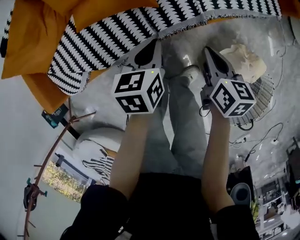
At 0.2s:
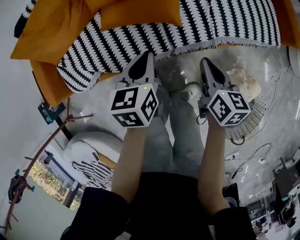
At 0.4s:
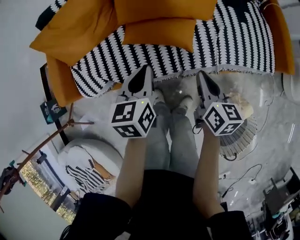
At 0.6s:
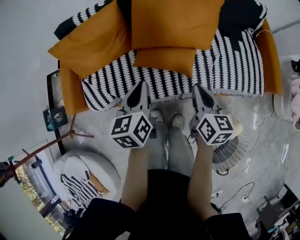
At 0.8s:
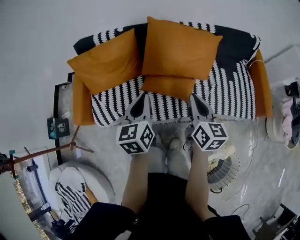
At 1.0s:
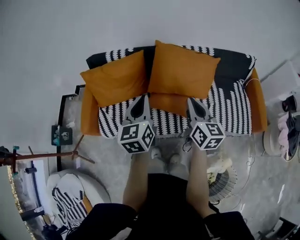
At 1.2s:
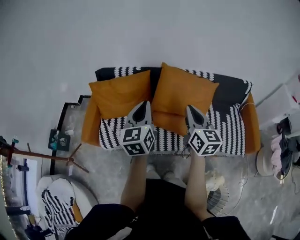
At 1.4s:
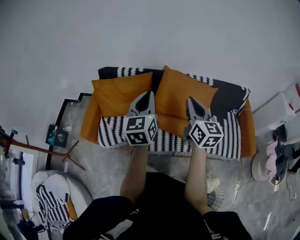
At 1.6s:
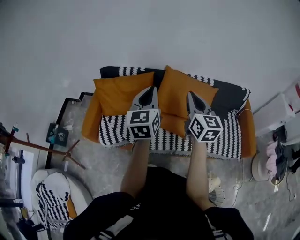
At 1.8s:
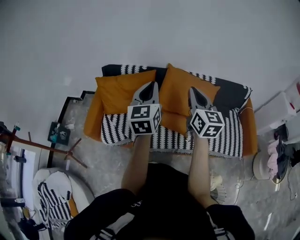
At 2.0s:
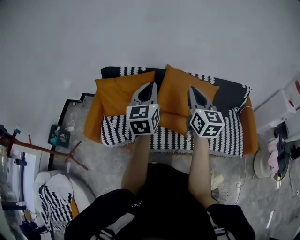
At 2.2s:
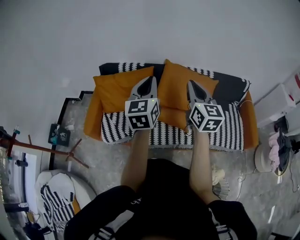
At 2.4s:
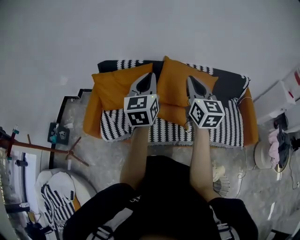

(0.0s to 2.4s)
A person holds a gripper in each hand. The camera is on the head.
0.0s - 1.2s: Both grippers travel together upward, approximately 50 cm. The right gripper angles its fingers upward, by about 30 degrees. Meanwhile the left gripper tilts its fingers about 40 degrees upward.
1.2s - 2.4s: Both grippers move upward, roughly 10 cm.

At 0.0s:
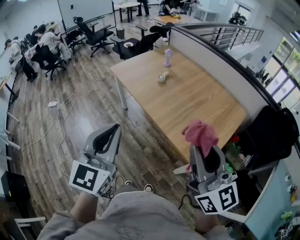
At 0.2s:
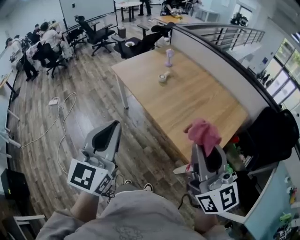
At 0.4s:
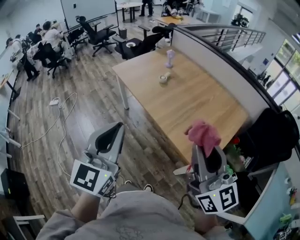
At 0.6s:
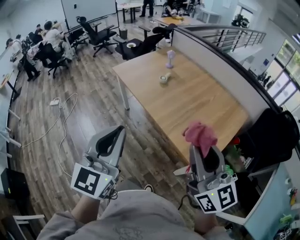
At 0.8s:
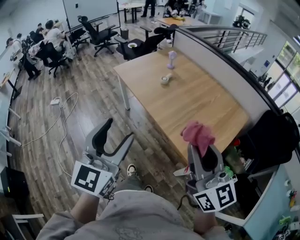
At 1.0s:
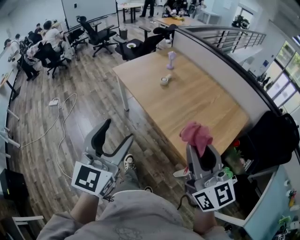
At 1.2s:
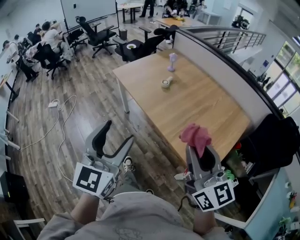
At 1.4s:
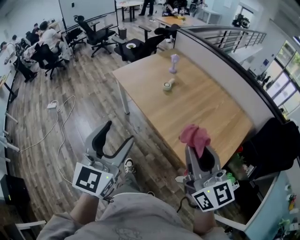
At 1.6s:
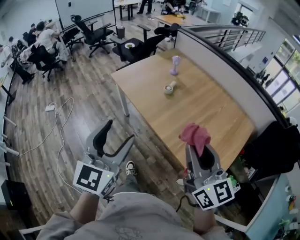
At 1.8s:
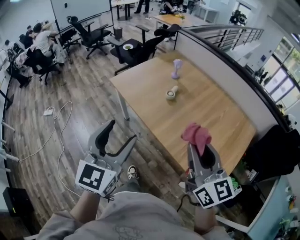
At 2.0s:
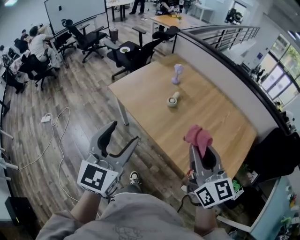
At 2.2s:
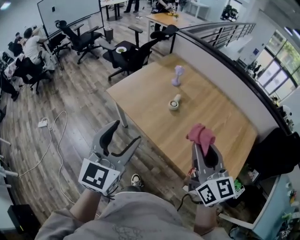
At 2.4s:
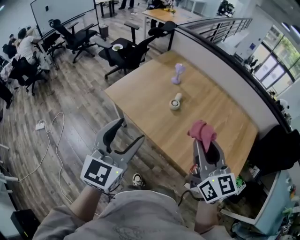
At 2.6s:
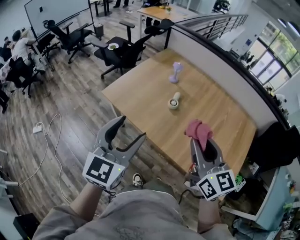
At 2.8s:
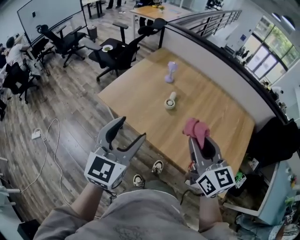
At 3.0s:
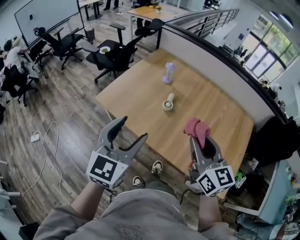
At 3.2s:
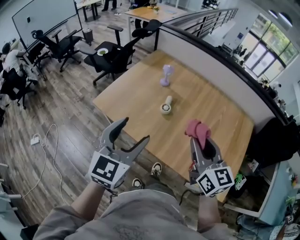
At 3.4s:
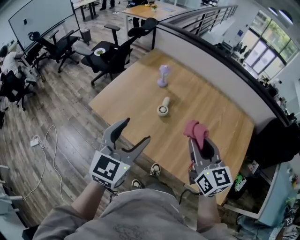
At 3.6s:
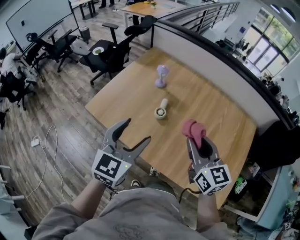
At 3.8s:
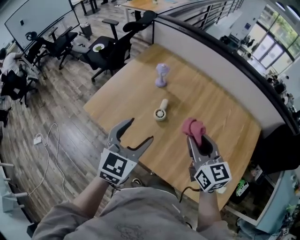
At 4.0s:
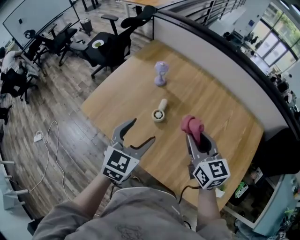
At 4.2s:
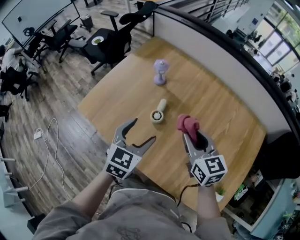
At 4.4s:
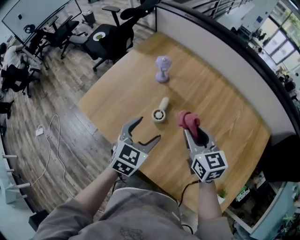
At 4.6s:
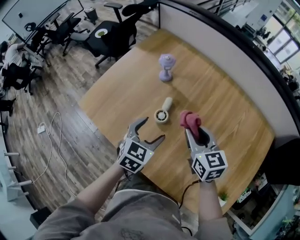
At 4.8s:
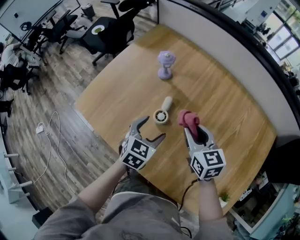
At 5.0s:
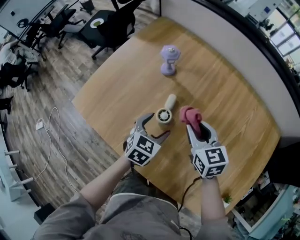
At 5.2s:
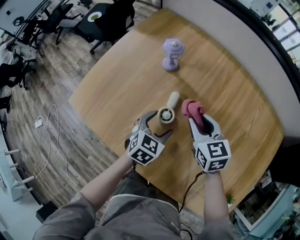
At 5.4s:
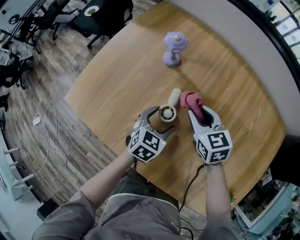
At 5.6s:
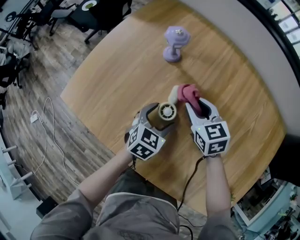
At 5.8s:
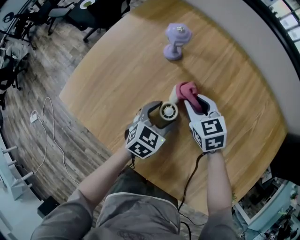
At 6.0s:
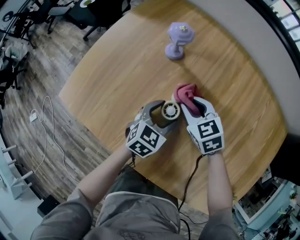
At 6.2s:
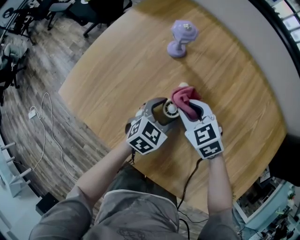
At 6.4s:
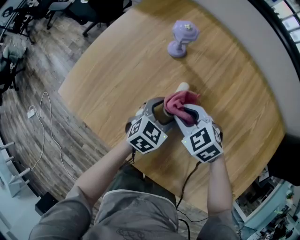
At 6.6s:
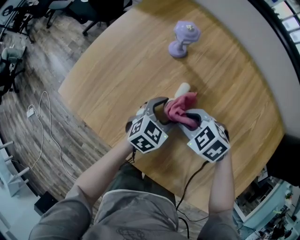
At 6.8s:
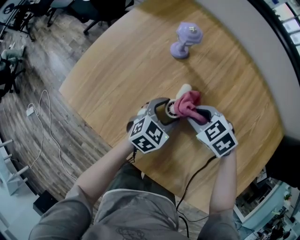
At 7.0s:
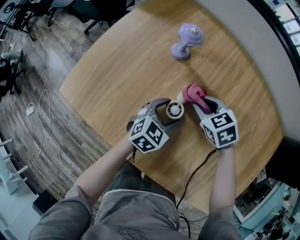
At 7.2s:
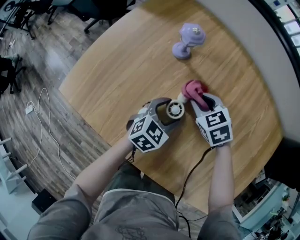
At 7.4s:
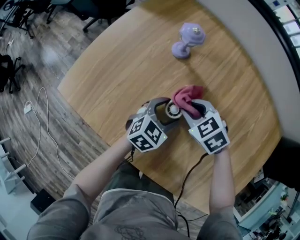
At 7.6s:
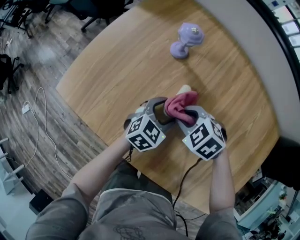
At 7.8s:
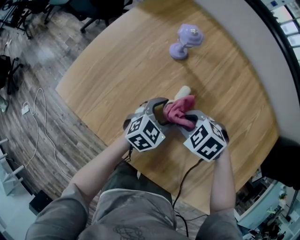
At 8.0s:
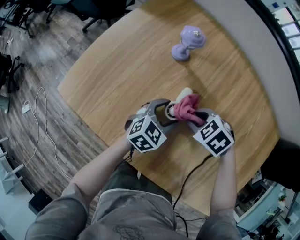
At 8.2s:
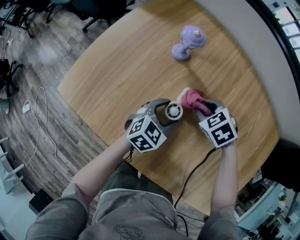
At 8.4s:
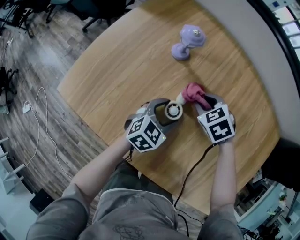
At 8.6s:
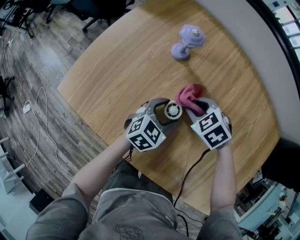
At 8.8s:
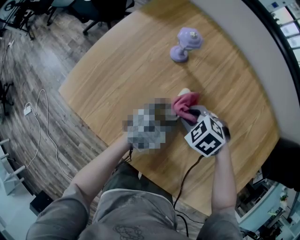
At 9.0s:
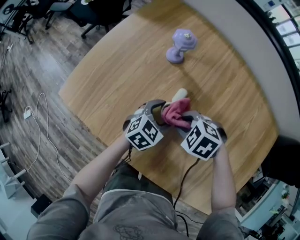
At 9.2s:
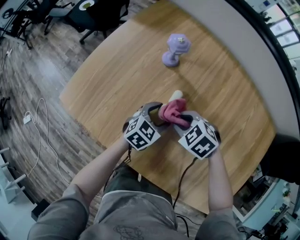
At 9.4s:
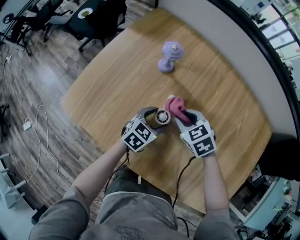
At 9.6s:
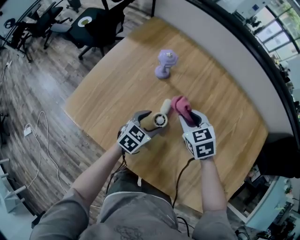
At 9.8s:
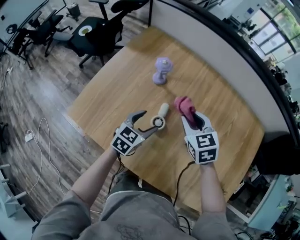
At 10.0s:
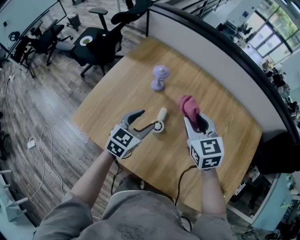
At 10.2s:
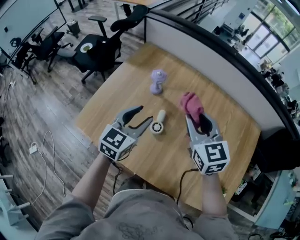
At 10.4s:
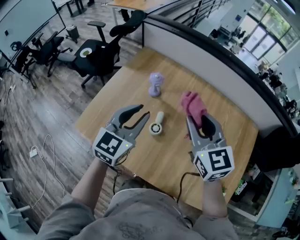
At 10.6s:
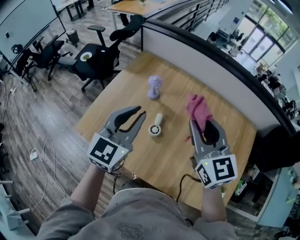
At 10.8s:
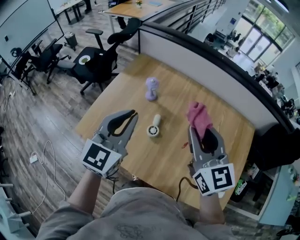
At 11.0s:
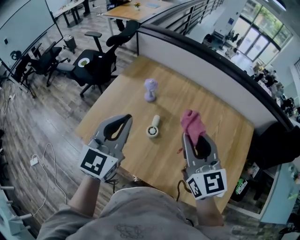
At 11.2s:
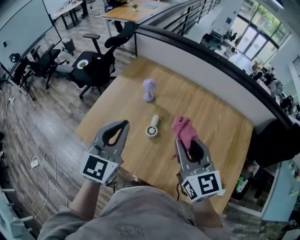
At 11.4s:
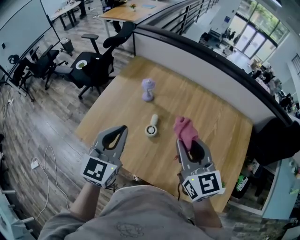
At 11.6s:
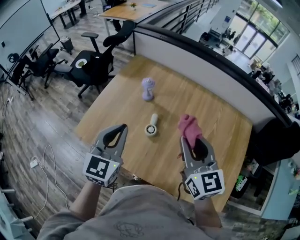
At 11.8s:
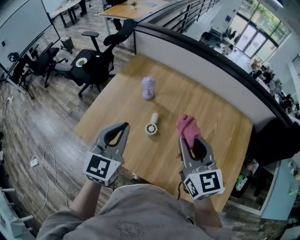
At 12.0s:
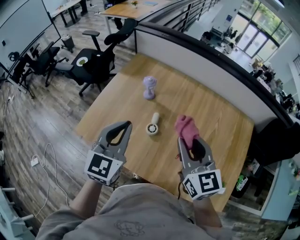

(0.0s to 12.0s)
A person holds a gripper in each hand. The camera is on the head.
0.0s - 1.6s: The right gripper heads forward and to the left, covering approximately 20 cm; the left gripper shifts about 15 cm forward, and opens.
1.6s - 3.0s: The left gripper moves forward, some 25 cm, and changes its angle by roughly 20 degrees. The right gripper moves forward and to the left, approximately 25 cm.
3.0s - 4.4s: The right gripper is displaced forward and downward by about 30 cm. The left gripper shifts about 35 cm forward, downward and to the right, and swivels some 20 degrees.
4.4s - 6.0s: The right gripper goes approximately 25 cm downward, forward and to the left, and swivels roughly 30 degrees. The left gripper moves downward and forward, approximately 20 cm.
6.0s - 7.6s: The right gripper moves forward and backward over some 10 cm, changing direction 2 times, and changes its angle by approximately 30 degrees.
9.0s - 10.4s: Both grippers travel together upward, some 35 cm. The left gripper swivels some 30 degrees, and closes; the right gripper tips its fingers upward by approximately 60 degrees.
10.4s - 12.0s: Both grippers travel together backward, approximately 10 cm.

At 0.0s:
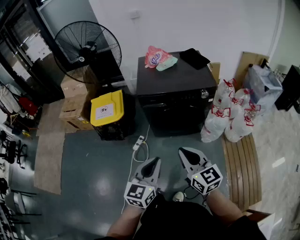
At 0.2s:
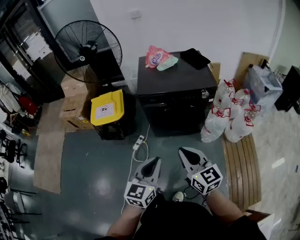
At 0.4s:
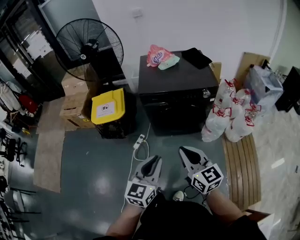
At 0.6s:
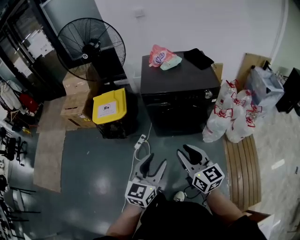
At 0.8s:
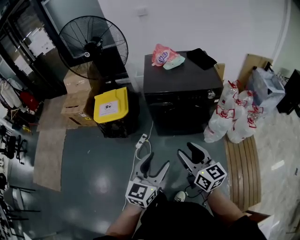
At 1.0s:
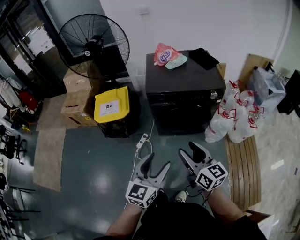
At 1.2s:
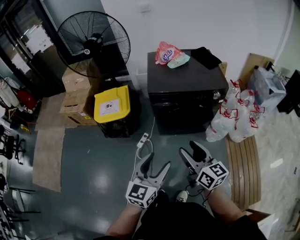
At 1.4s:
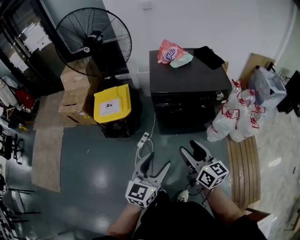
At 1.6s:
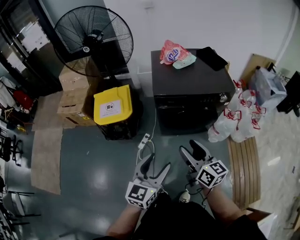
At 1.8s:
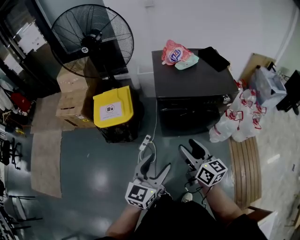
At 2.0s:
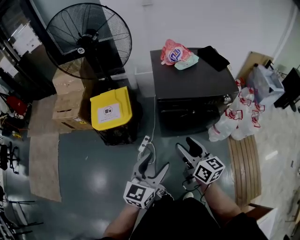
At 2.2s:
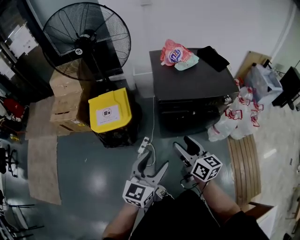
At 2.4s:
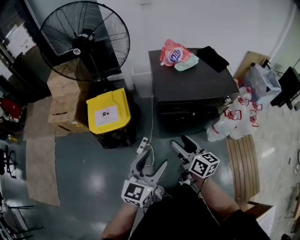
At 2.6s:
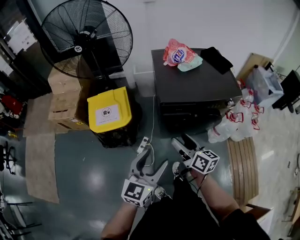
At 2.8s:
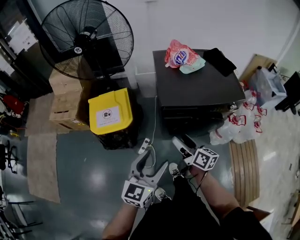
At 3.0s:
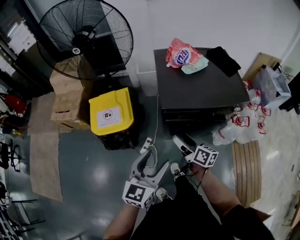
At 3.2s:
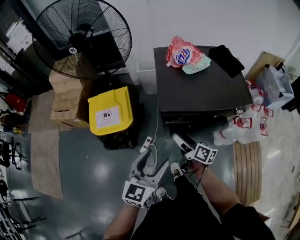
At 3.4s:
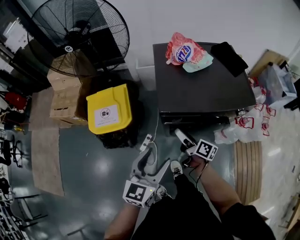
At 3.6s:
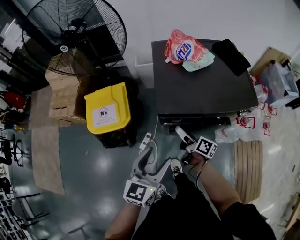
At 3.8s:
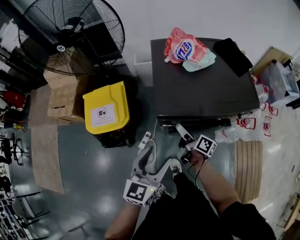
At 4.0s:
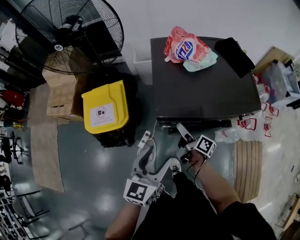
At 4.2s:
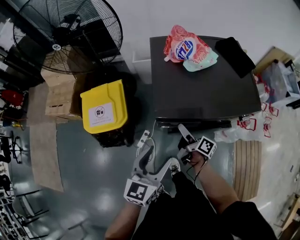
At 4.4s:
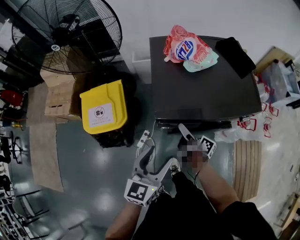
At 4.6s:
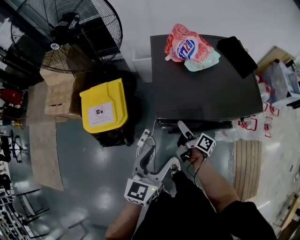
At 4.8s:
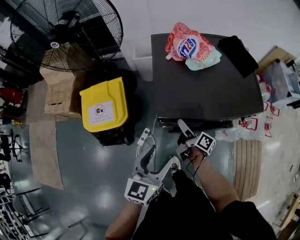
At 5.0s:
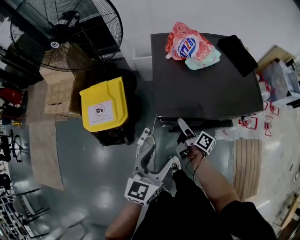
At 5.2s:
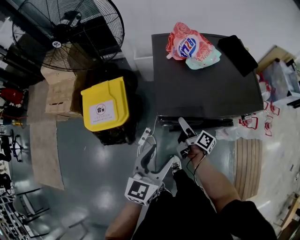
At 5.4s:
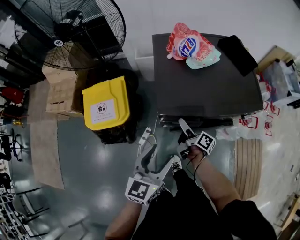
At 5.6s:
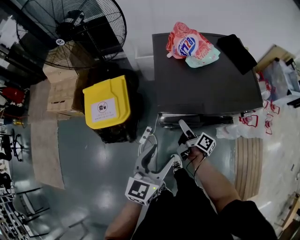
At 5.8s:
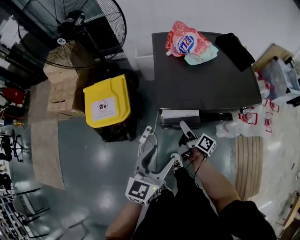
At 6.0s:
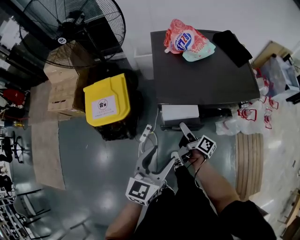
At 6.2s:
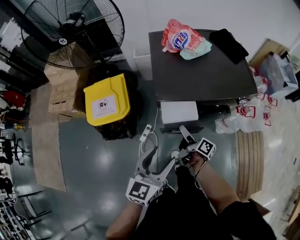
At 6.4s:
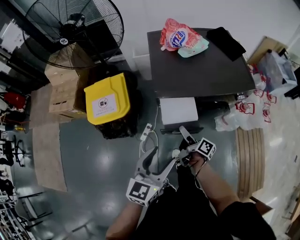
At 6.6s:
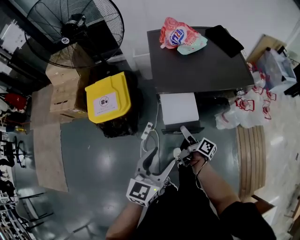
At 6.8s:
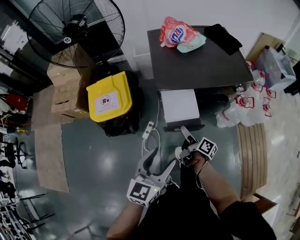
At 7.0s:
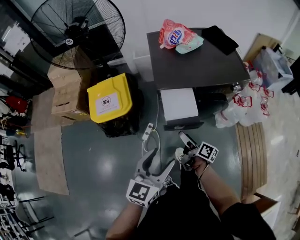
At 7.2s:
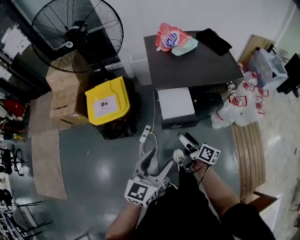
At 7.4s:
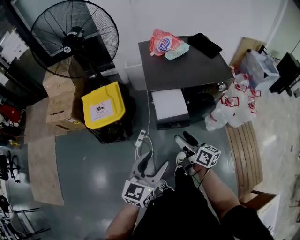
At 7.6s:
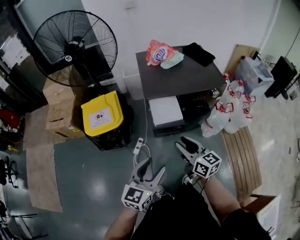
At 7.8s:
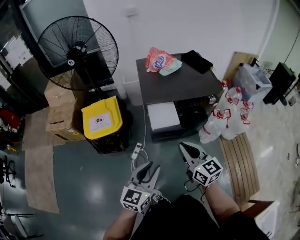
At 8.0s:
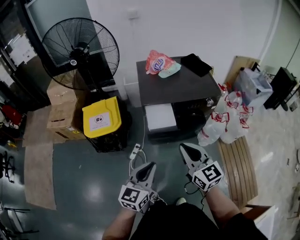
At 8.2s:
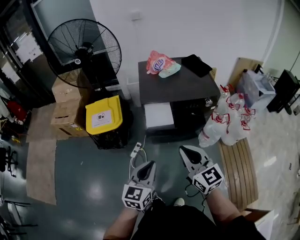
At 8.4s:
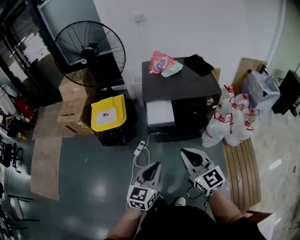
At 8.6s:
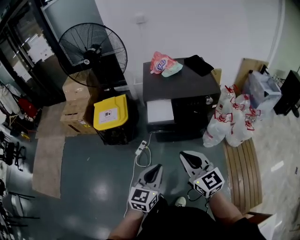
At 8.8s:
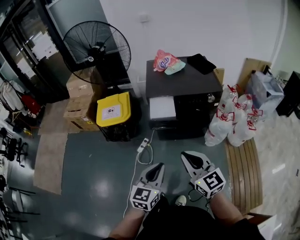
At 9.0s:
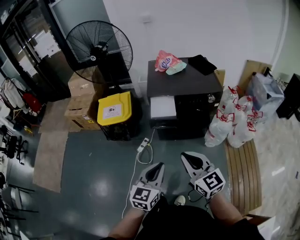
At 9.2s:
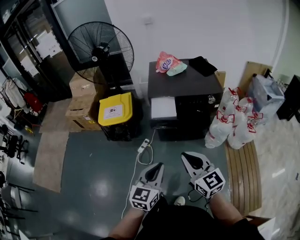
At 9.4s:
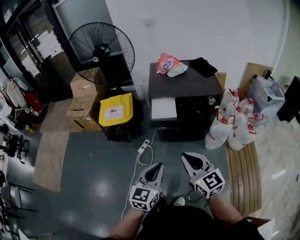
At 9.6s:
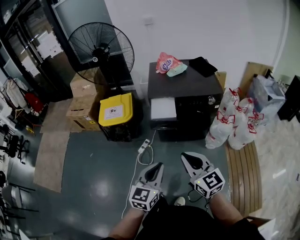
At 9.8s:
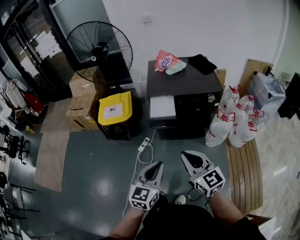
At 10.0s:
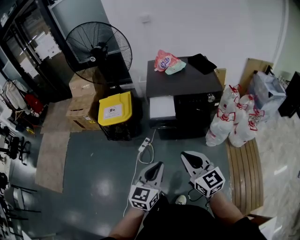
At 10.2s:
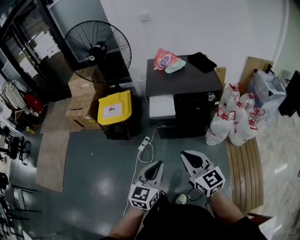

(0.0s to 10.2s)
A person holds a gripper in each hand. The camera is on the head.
0.0s - 1.4s: The left gripper travels to the left and forward by roughly 10 cm, and opens its fingers. The right gripper travels forward and to the left by approximately 10 cm, and opens.
1.4s - 3.0s: The left gripper travels forward and to the left by approximately 20 cm. Meanwhile the right gripper moves forward, downward and to the left, about 30 cm, and turns by some 30 degrees.
3.0s - 4.4s: The right gripper moves forward and downward, some 15 cm, and swivels about 30 degrees; the left gripper is displaced forward, downward and to the right by some 15 cm.
4.4s - 5.8s: The left gripper ends up roughly 5 cm from where it was.
5.8s - 7.2s: The grippers both shift backward by roughly 20 cm. The right gripper turns by some 20 degrees.
7.2s - 8.8s: The right gripper is displaced backward and upward by some 35 cm, rolls counterclockwise, seen from behind, by some 60 degrees, and closes up, while the left gripper travels backward and to the right by roughly 20 cm, and closes up.
8.8s - 10.2s: The grippers make only small movements.
